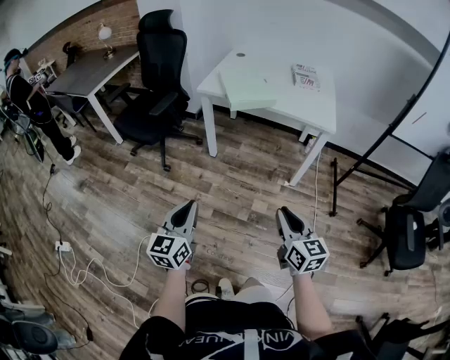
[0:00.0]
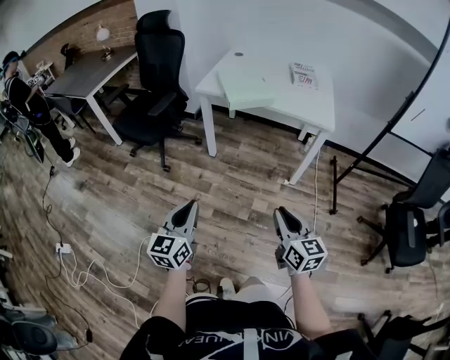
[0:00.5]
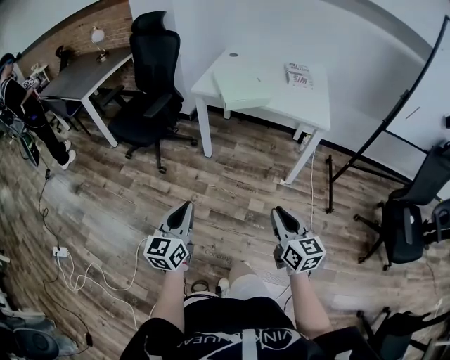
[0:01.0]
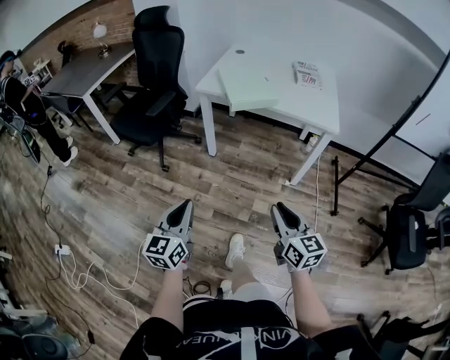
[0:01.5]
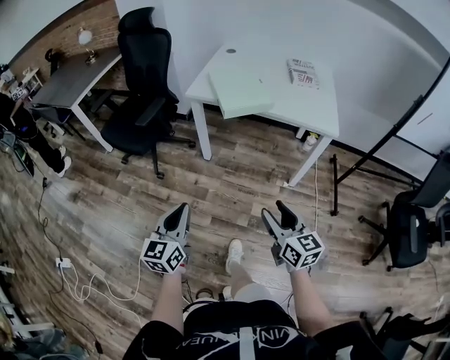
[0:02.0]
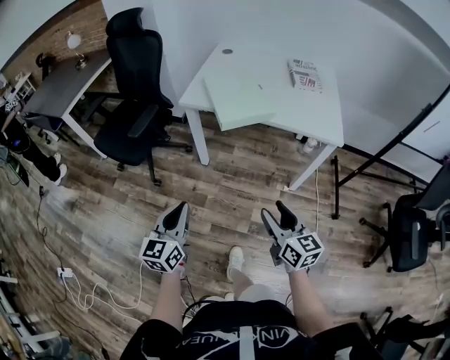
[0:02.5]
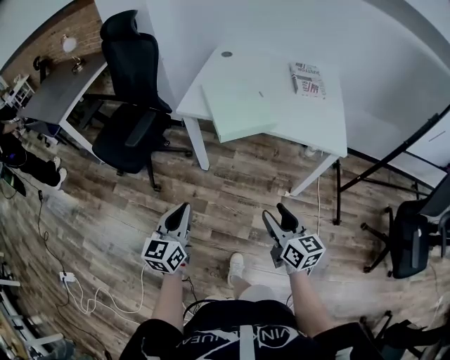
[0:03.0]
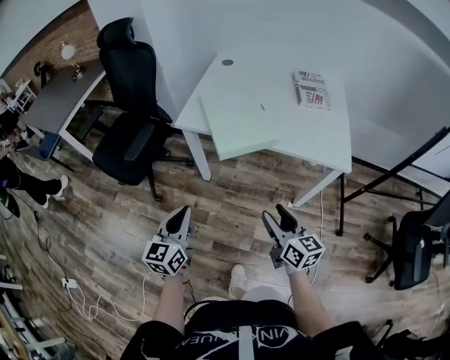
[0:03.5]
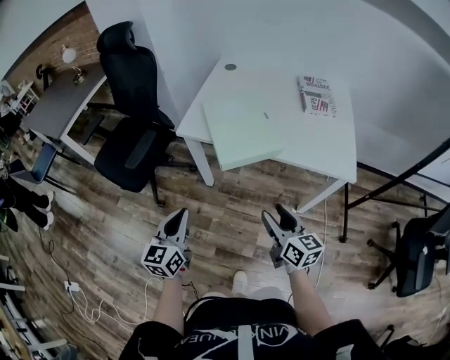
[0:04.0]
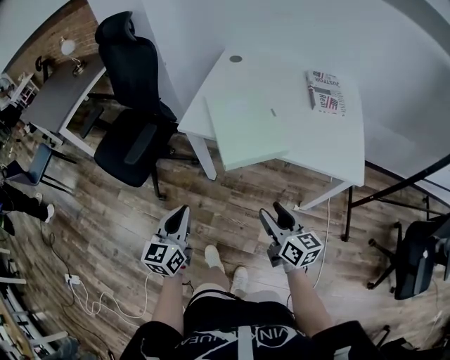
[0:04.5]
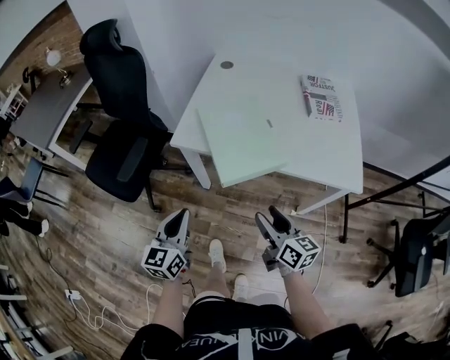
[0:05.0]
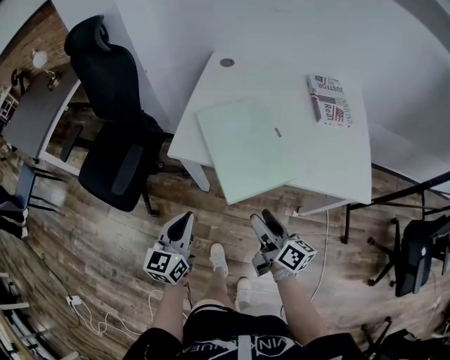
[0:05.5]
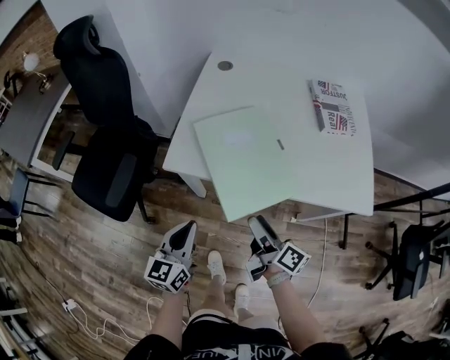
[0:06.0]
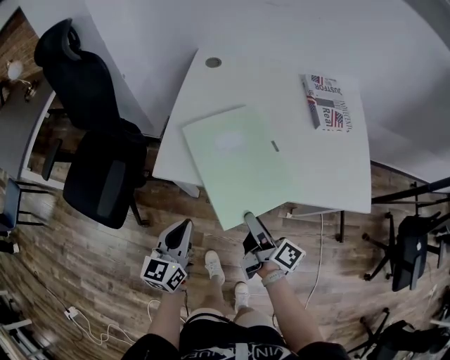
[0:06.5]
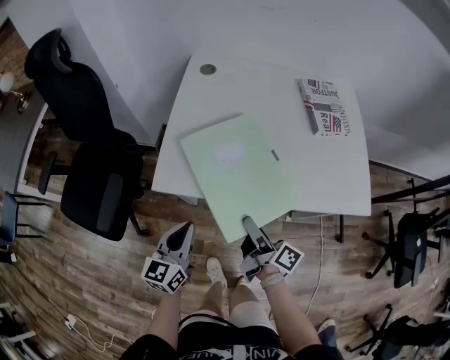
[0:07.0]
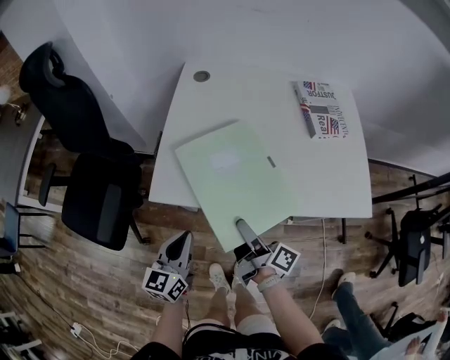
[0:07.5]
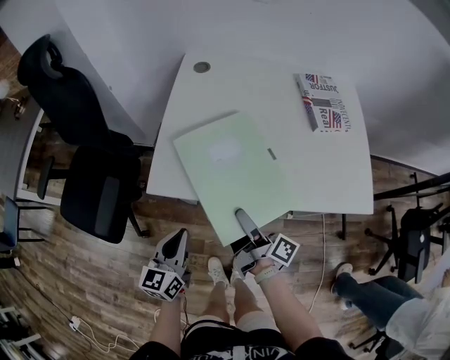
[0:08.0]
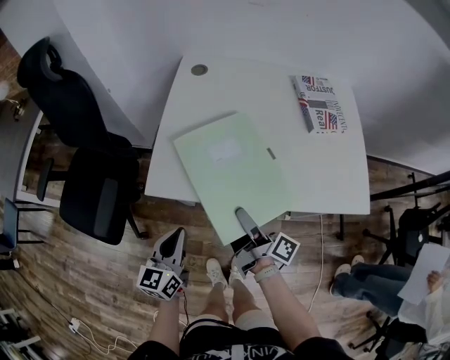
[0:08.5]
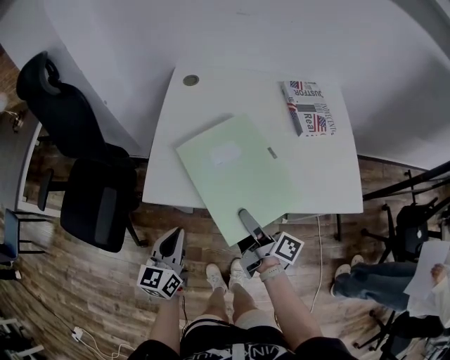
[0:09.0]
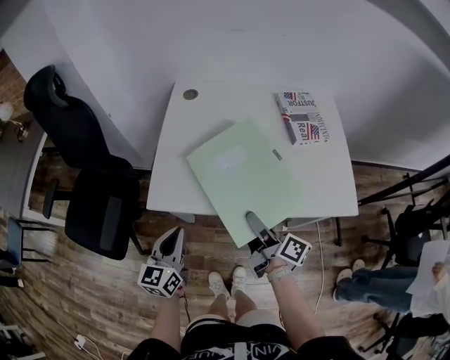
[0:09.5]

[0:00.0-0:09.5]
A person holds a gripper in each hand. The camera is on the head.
0:00.0 to 0:02.0: Both grippers move forward, about 10 cm. The right gripper opens its fingers.
0:02.0 to 0:04.0: Both grippers move forward, some 25 cm.
0:04.0 to 0:05.5: The grippers both shift forward by some 15 cm. The right gripper turns by roughly 30 degrees.
0:05.5 to 0:07.5: The left gripper travels forward and downward by roughly 10 cm. The right gripper moves forward, roughly 10 cm, and swivels approximately 20 degrees.
0:07.5 to 0:09.5: The left gripper shifts by some 5 cm. Meanwhile the right gripper is displaced to the right and upward by roughly 10 cm.

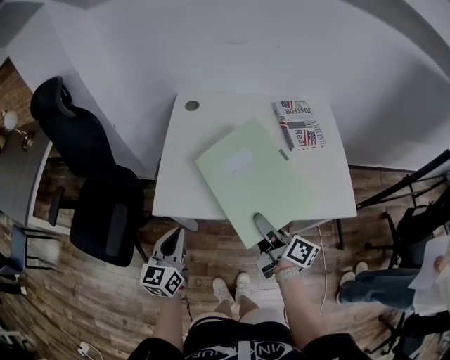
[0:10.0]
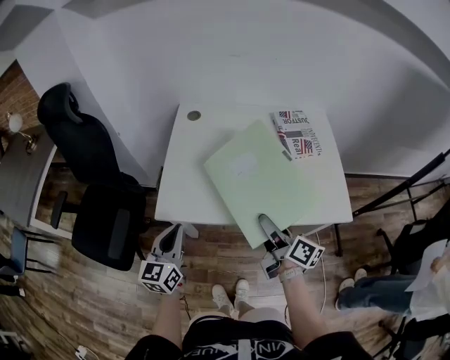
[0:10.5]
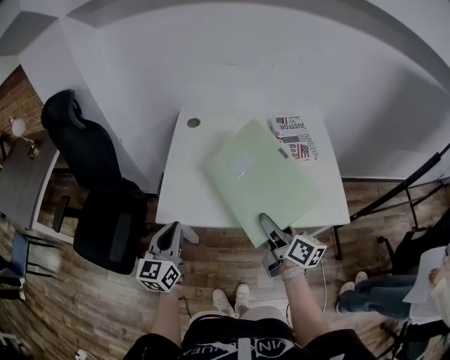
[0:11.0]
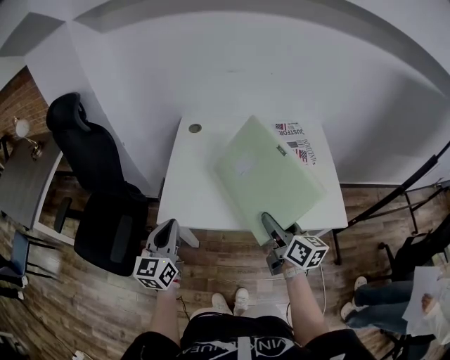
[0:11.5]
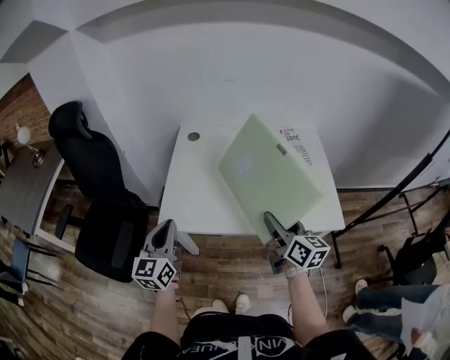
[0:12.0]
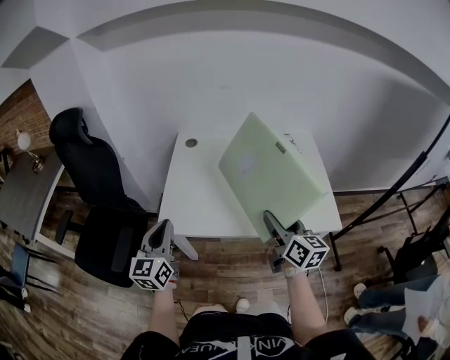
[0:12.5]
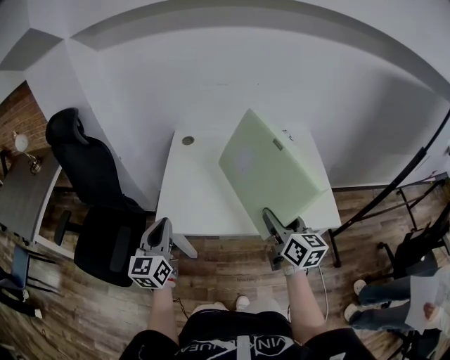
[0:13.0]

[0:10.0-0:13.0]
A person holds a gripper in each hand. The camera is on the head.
0:10.0 to 0:11.5: The left gripper heads upward, covering roughly 10 cm. Meanwhile the right gripper moves to the right and upward, approximately 5 cm, and changes its angle by about 20 degrees.
0:11.5 to 0:13.0: The right gripper moves about 5 cm.

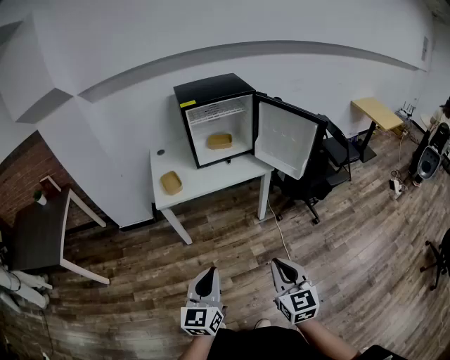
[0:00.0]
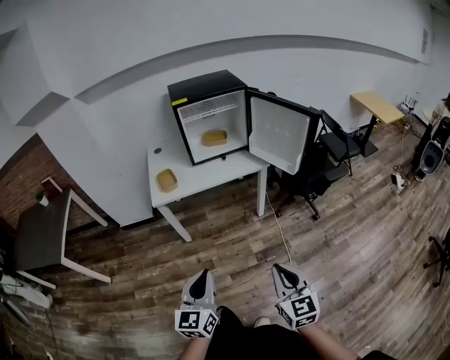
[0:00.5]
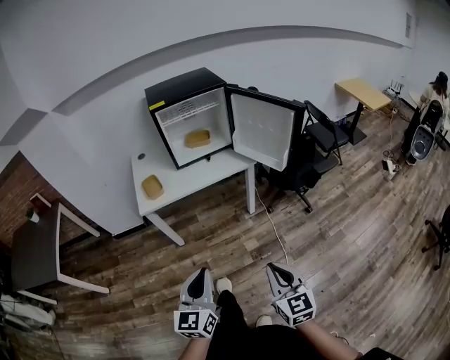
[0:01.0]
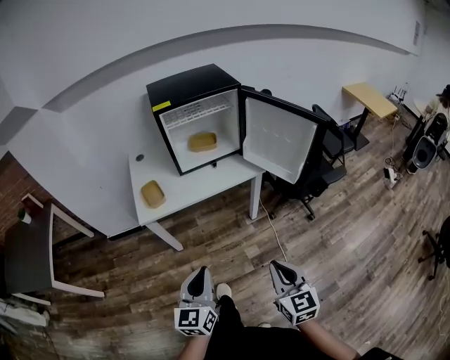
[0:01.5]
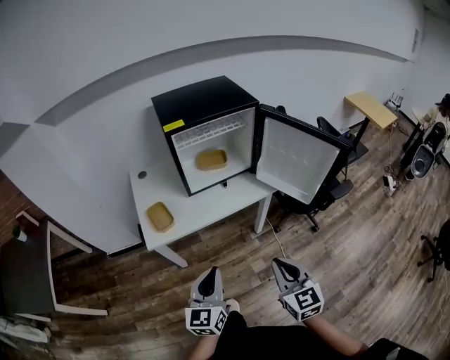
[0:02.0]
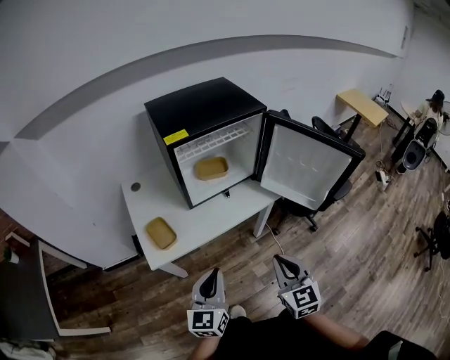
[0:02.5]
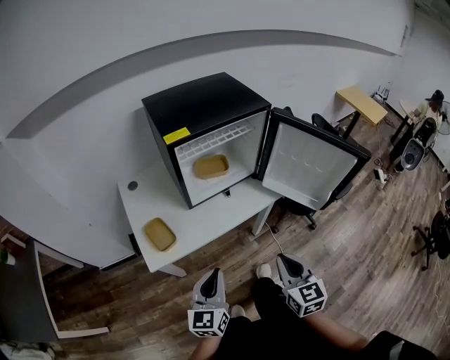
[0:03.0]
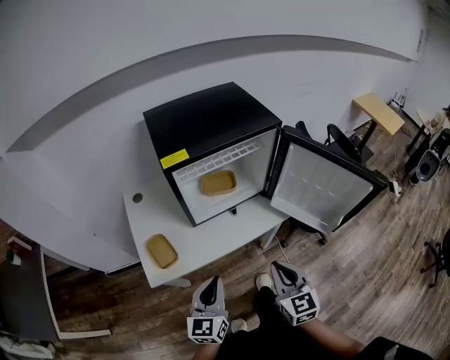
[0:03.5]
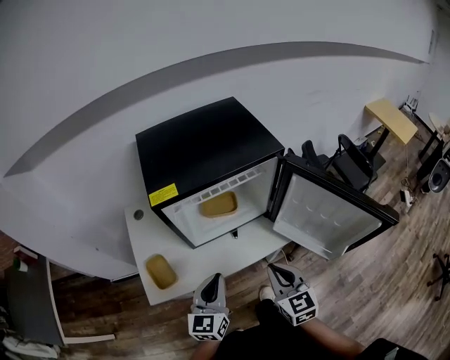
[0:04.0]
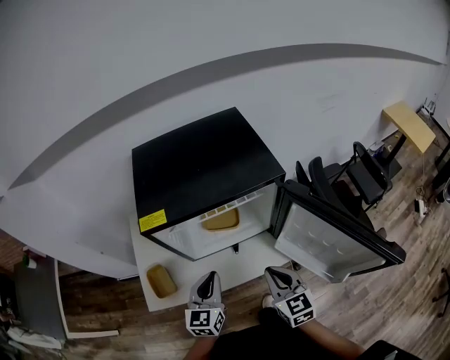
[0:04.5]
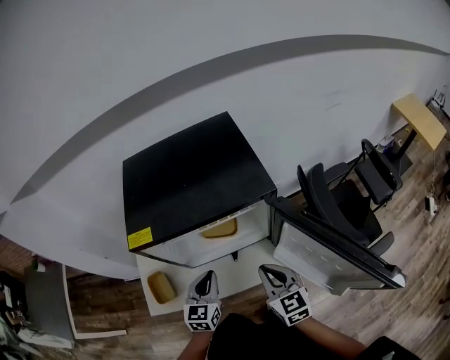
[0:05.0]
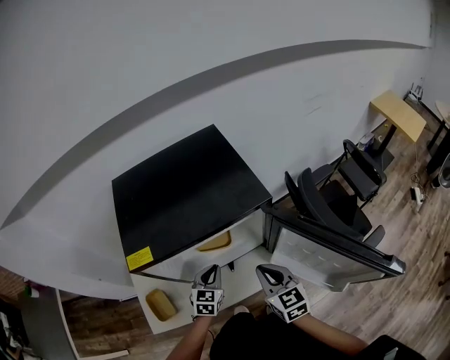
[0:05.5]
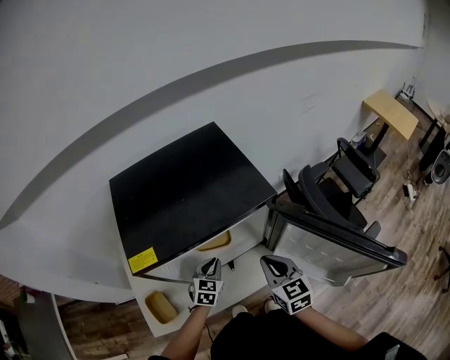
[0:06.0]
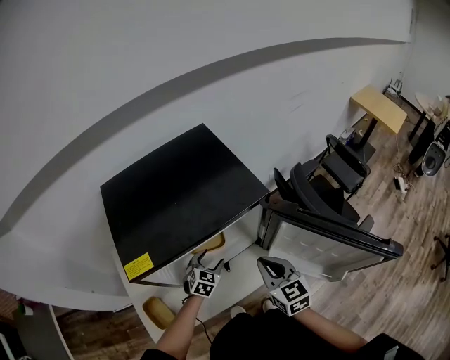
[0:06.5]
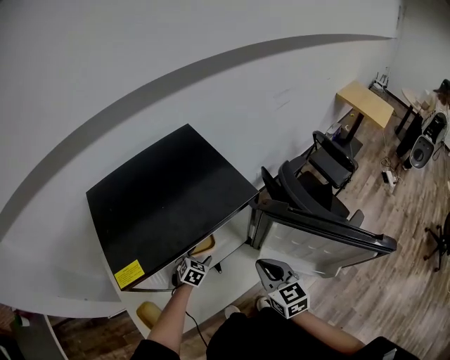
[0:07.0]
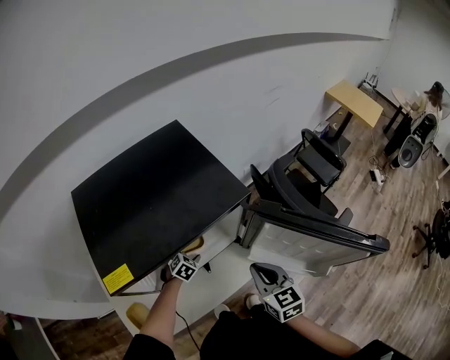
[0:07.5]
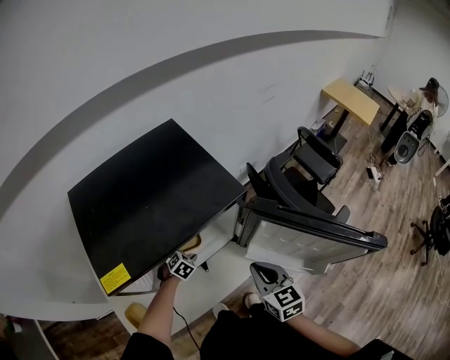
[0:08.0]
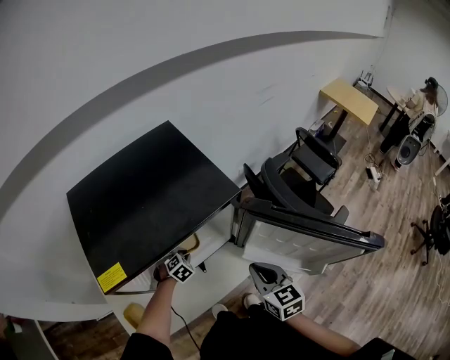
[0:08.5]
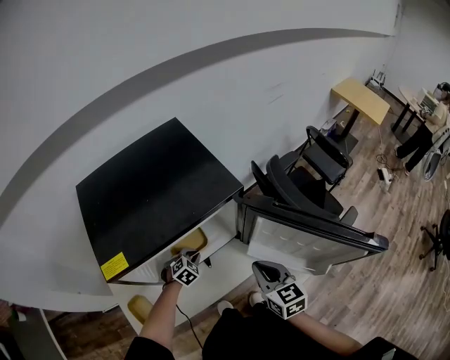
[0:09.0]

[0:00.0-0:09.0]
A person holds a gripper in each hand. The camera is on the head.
0:00.0 to 0:02.0: Both grippers move forward, some 25 cm.
0:02.0 to 0:04.5: The two grippers go approximately 40 cm forward.
0:04.5 to 0:07.0: The left gripper shifts about 30 cm forward and downward, angles its fingers downward, by roughly 40 degrees, and opens its fingers. The right gripper is displaced forward by approximately 10 cm.
0:07.0 to 0:09.0: The left gripper closes its fingers.

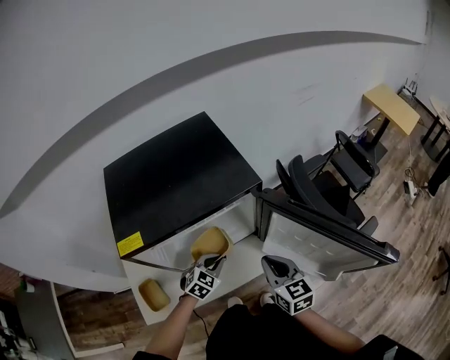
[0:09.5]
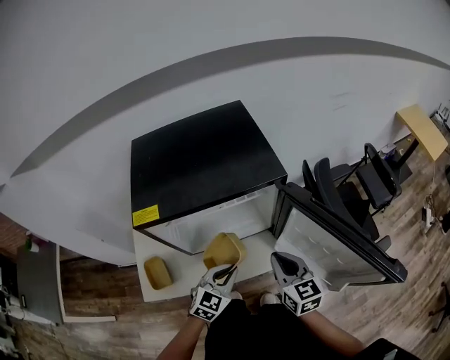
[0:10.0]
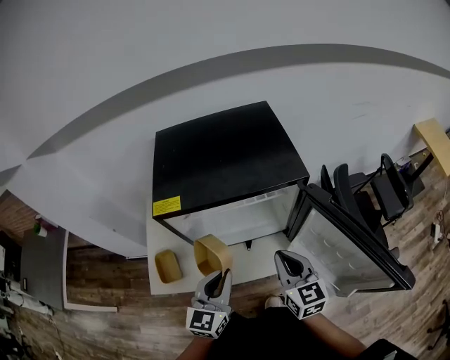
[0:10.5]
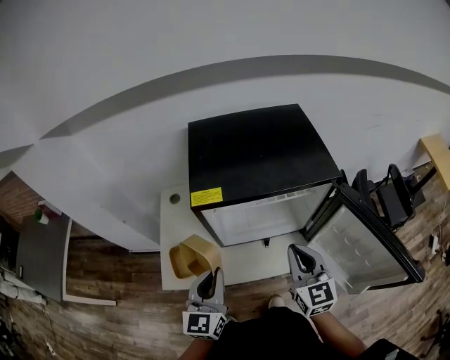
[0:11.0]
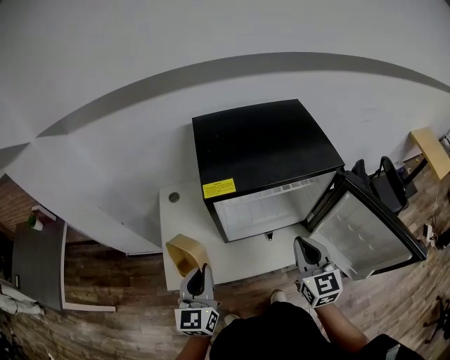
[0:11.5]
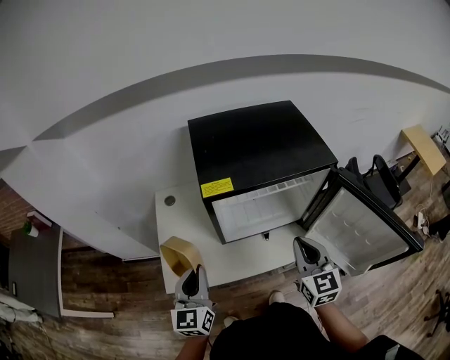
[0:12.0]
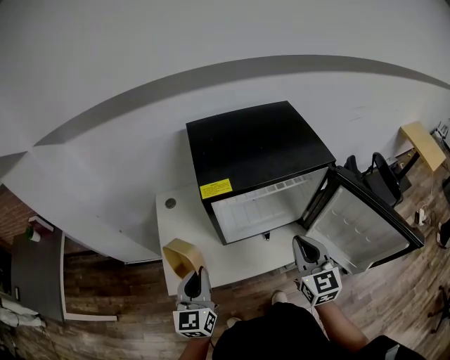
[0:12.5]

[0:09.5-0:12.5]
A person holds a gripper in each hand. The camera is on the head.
0:09.5 to 0:11.0: The right gripper goes about 15 cm to the left and upward, while the left gripper is displaced upward, to the left and backward by roughly 30 cm, and tips its fingers upward by some 40 degrees.
0:11.0 to 0:12.5: The left gripper goes some 10 cm to the left.

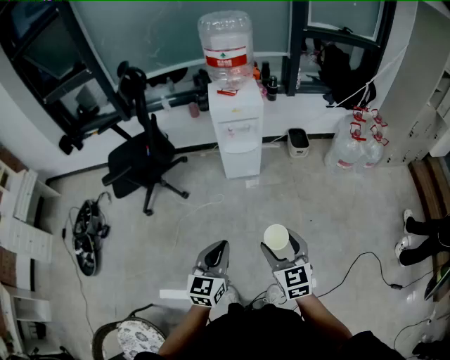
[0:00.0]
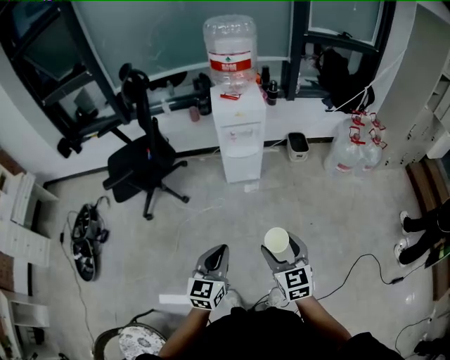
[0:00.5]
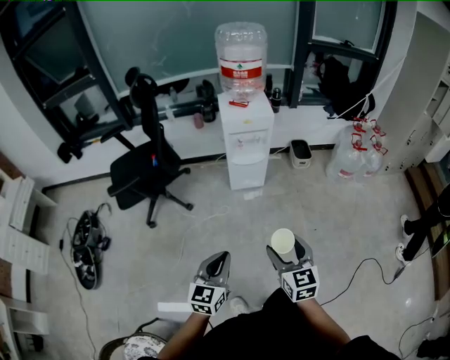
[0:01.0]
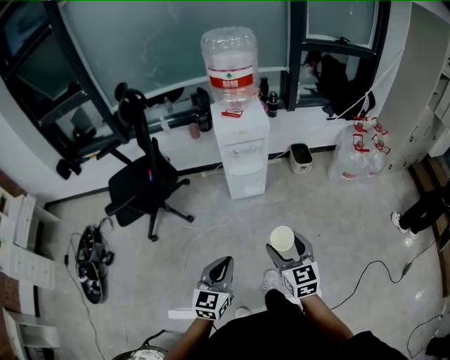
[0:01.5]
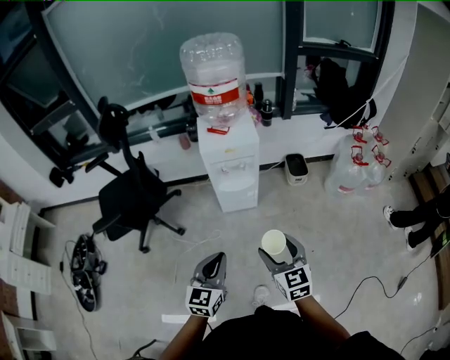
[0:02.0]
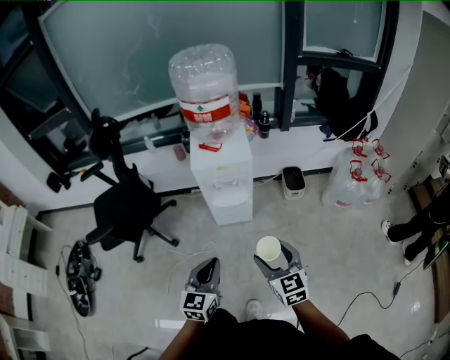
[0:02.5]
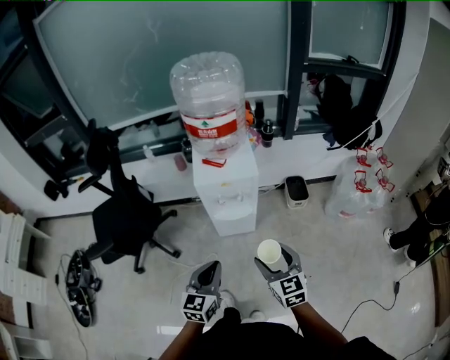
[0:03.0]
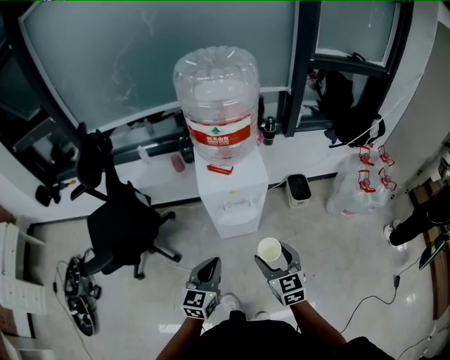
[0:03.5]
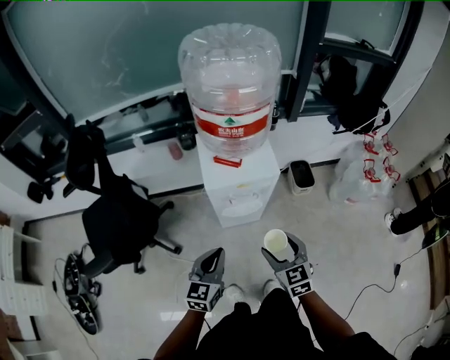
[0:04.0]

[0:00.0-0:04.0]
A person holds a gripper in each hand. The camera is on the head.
0:00.0 to 0:02.0: The grippers both shift forward by about 20 cm.
0:02.0 to 0:04.0: The two grippers go some 25 cm forward.
